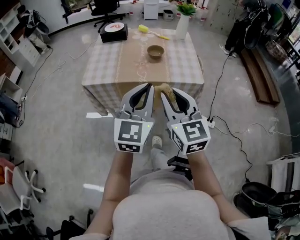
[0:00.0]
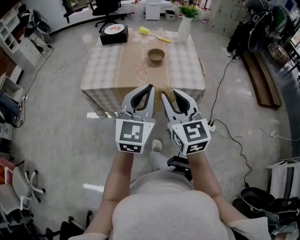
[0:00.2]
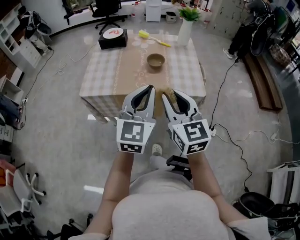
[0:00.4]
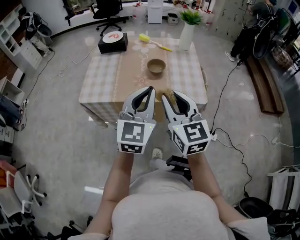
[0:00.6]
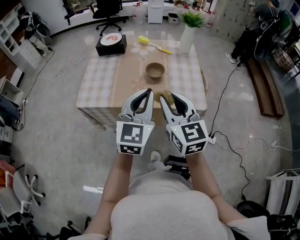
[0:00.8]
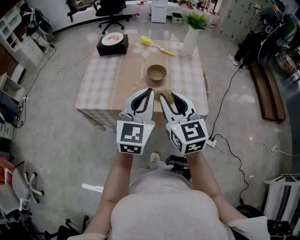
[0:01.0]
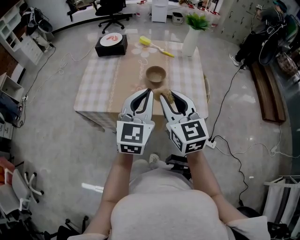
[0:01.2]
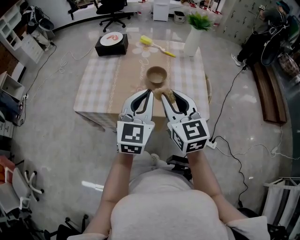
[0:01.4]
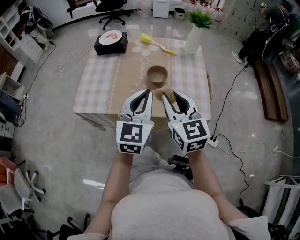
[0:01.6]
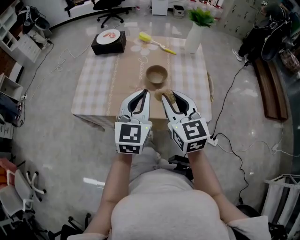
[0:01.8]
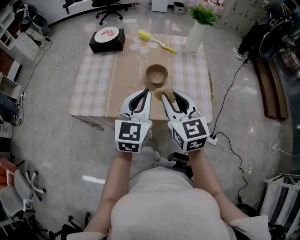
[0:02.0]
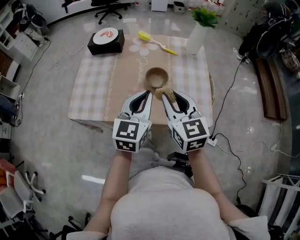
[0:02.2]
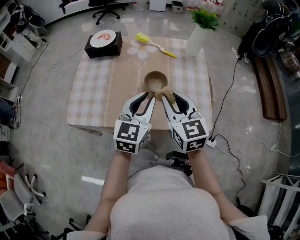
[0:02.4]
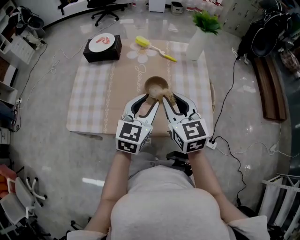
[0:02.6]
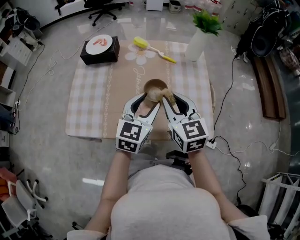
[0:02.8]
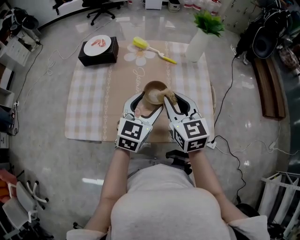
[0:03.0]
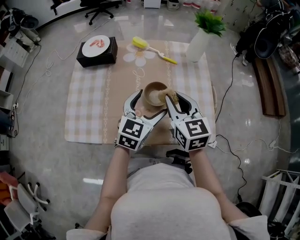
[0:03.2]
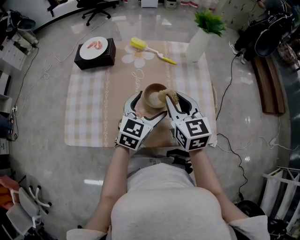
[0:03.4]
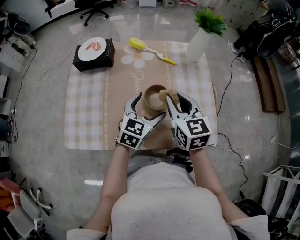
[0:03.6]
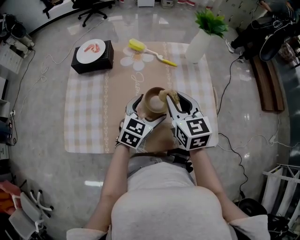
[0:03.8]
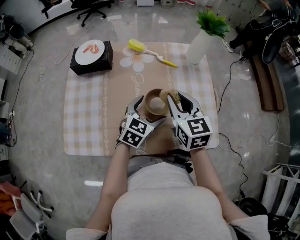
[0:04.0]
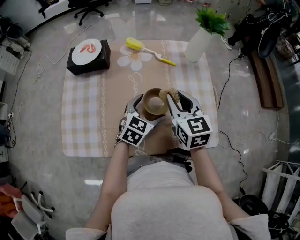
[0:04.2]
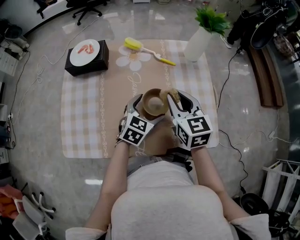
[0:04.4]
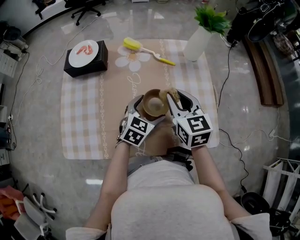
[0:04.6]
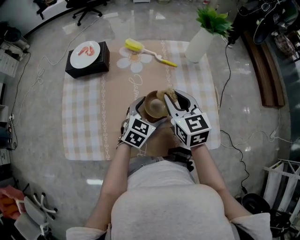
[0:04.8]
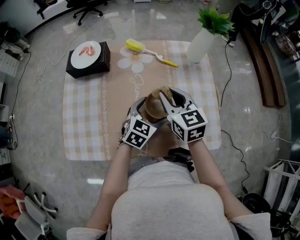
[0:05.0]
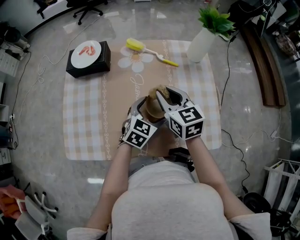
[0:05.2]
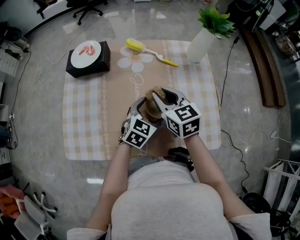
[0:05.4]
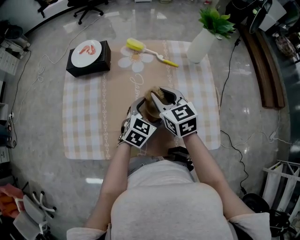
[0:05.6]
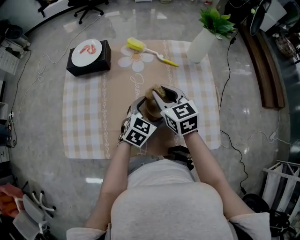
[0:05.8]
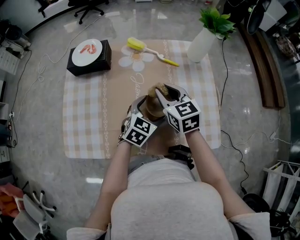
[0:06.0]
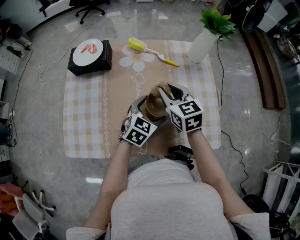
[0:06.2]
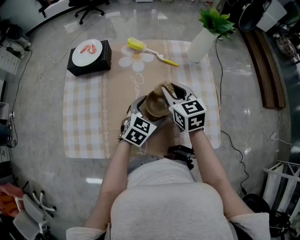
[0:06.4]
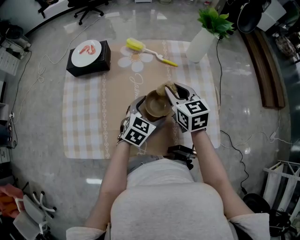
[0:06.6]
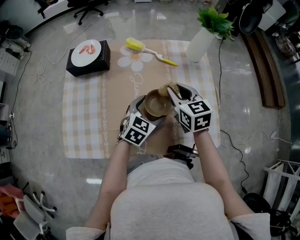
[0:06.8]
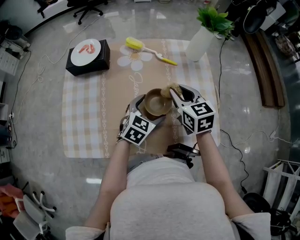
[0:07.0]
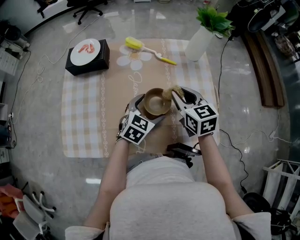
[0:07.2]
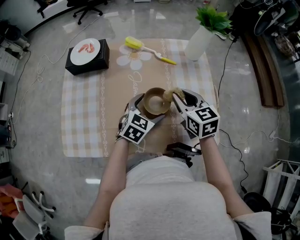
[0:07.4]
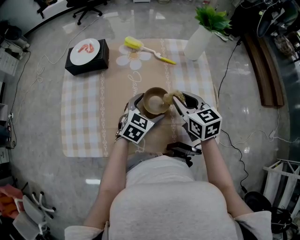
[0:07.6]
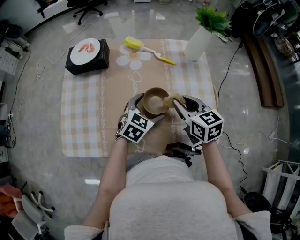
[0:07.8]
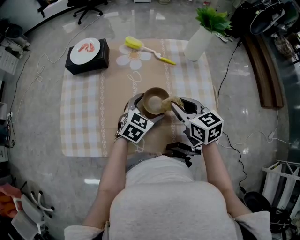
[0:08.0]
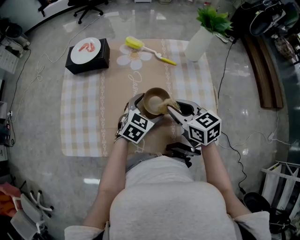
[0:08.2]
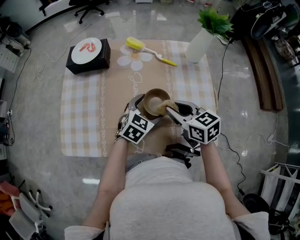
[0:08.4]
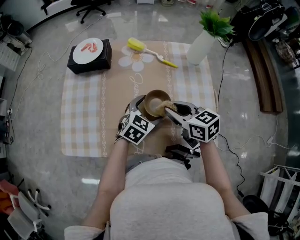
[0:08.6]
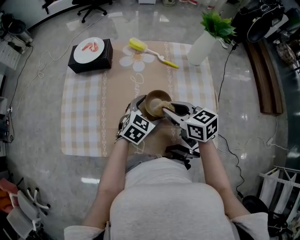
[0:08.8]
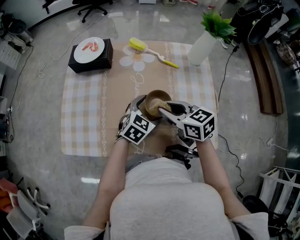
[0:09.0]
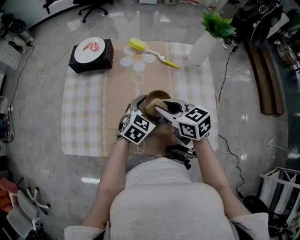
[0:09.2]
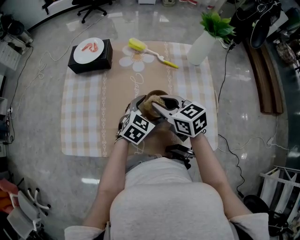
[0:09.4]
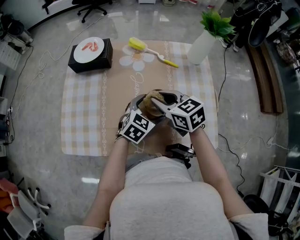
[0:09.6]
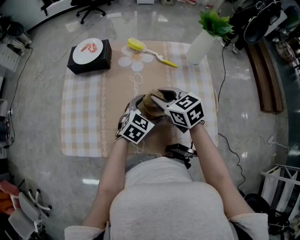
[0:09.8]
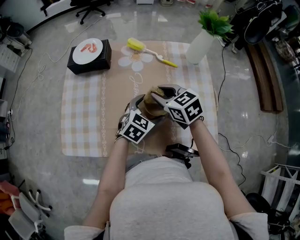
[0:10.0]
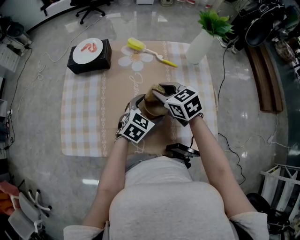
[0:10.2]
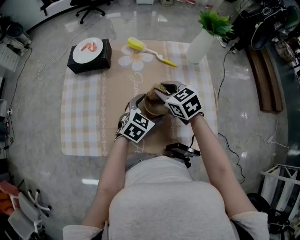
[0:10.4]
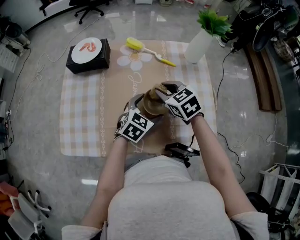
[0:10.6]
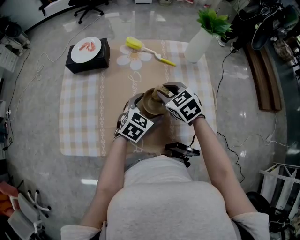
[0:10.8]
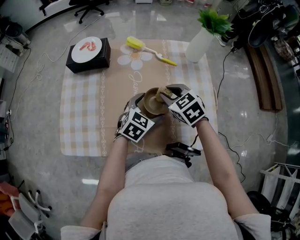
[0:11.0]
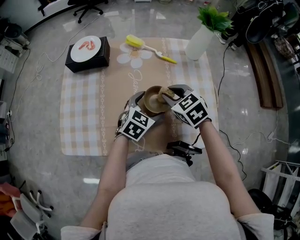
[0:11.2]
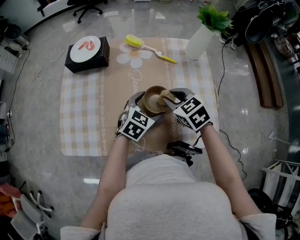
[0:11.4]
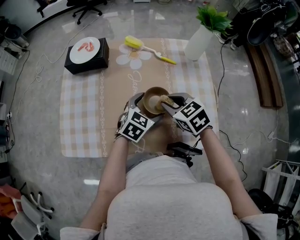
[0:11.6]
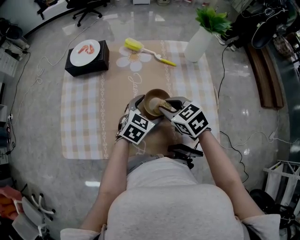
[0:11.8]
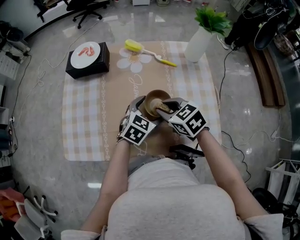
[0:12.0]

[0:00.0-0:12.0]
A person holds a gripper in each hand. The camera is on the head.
0:00.0 to 0:01.6: Both grippers travel together forward, about 25 cm.
0:01.6 to 0:03.0: Both grippers travel together forward and downward, about 15 cm. The left gripper opens up.
0:03.0 to 0:04.4: The left gripper heads downward and forward, covering approximately 15 cm, and opens its fingers, while the right gripper goes some 5 cm forward.
0:04.4 to 0:06.0: The right gripper is displaced to the left by approximately 5 cm.
0:06.0 to 0:07.6: The right gripper goes approximately 10 cm to the right.
0:07.6 to 0:09.0: The right gripper travels to the left by approximately 5 cm, and swivels roughly 20 degrees.
0:09.0 to 0:10.4: The right gripper is displaced forward by some 5 cm.
0:10.4 to 0:12.0: The right gripper is displaced backward by about 5 cm.

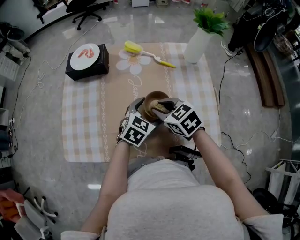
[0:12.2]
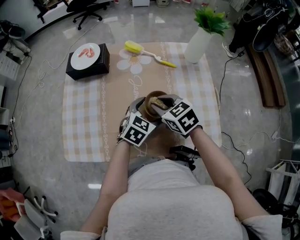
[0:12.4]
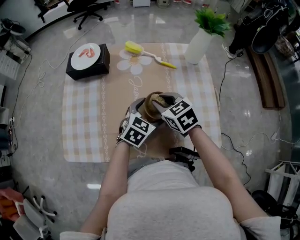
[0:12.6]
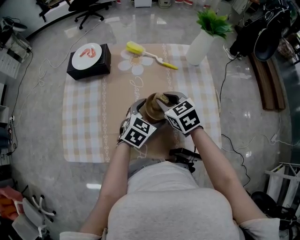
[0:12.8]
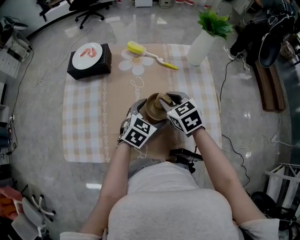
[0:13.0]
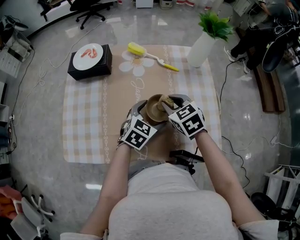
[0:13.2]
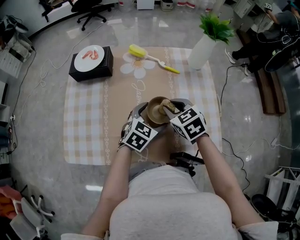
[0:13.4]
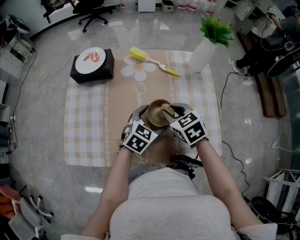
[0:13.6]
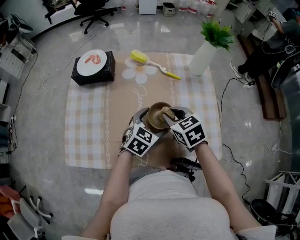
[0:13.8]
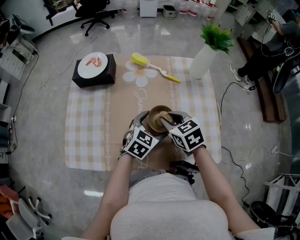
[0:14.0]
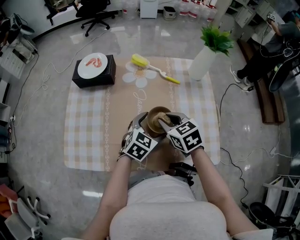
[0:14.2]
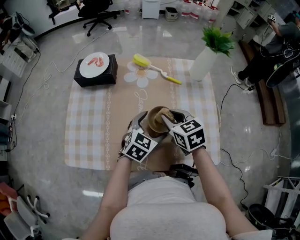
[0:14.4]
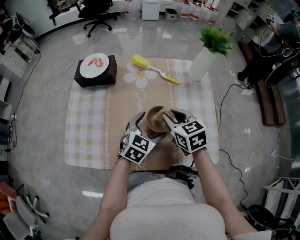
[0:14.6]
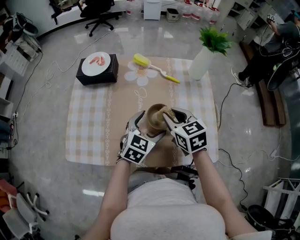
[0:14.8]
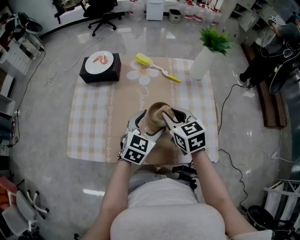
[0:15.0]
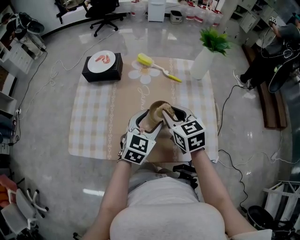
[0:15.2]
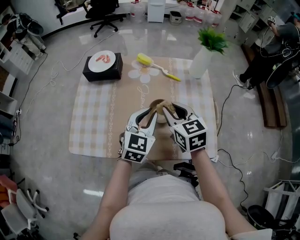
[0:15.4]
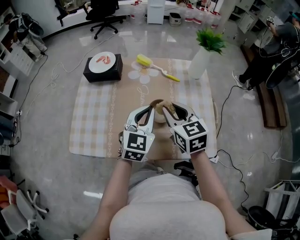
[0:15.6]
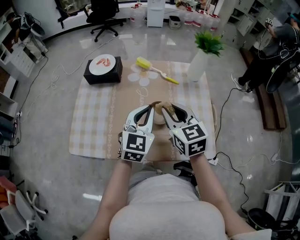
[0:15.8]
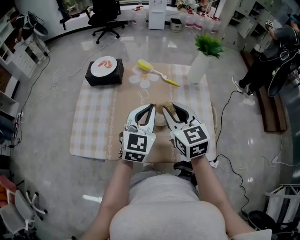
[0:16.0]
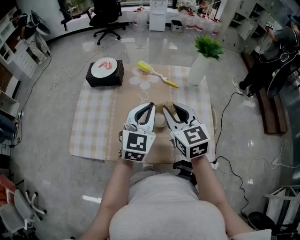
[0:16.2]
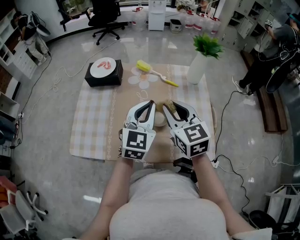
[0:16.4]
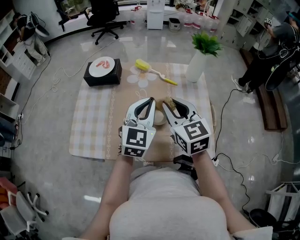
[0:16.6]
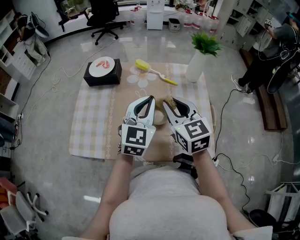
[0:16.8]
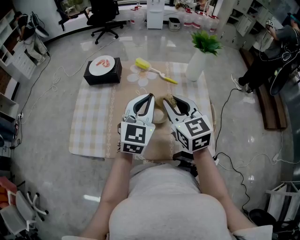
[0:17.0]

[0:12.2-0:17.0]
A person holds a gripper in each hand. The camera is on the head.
0:12.2 to 0:13.8: There are only small adjustments of the grippers.
0:13.8 to 0:15.4: The two grippers go about 10 cm upward. The left gripper changes its angle by roughly 30 degrees, and closes up.
0:15.4 to 0:17.0: The two grippers go about 10 cm upward.

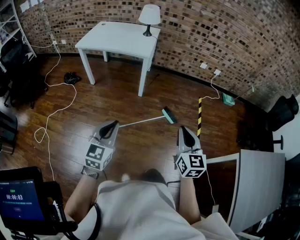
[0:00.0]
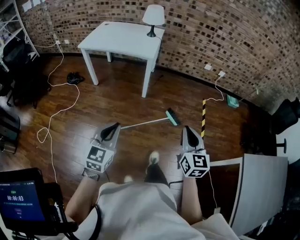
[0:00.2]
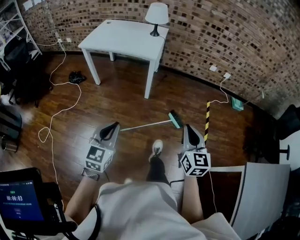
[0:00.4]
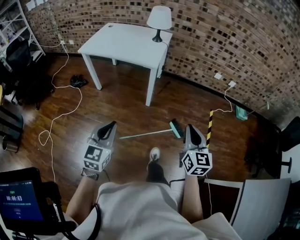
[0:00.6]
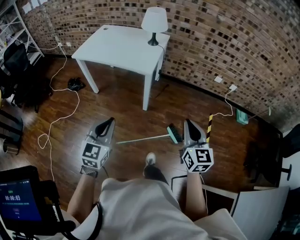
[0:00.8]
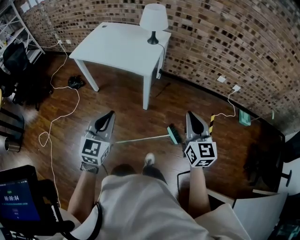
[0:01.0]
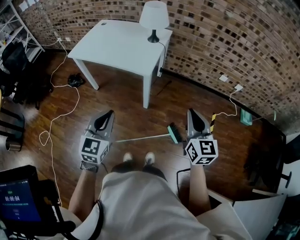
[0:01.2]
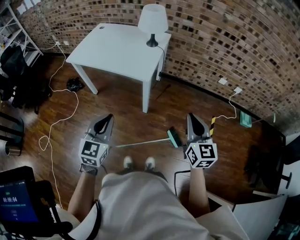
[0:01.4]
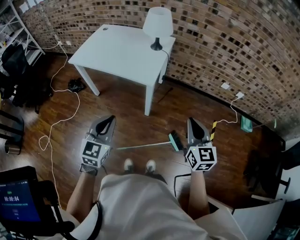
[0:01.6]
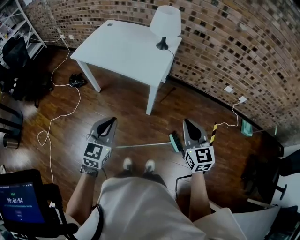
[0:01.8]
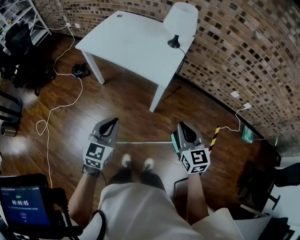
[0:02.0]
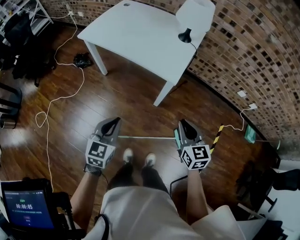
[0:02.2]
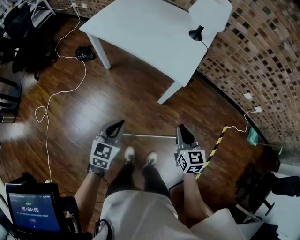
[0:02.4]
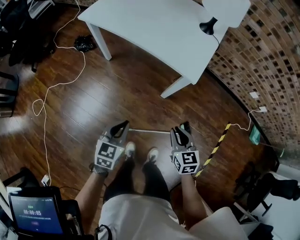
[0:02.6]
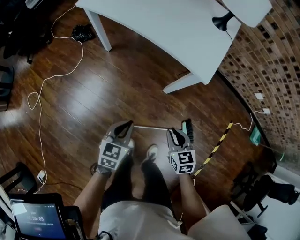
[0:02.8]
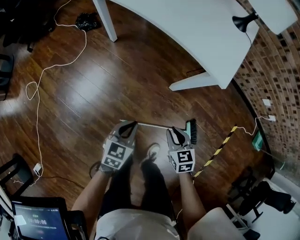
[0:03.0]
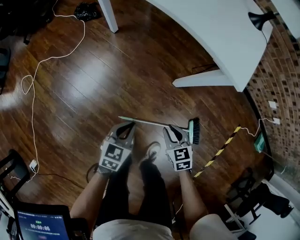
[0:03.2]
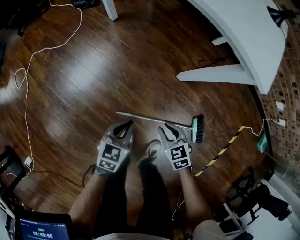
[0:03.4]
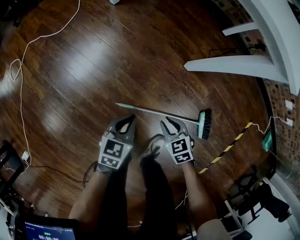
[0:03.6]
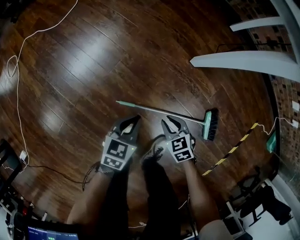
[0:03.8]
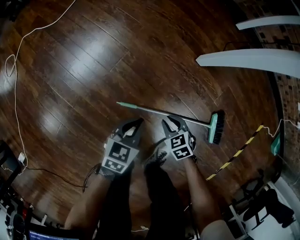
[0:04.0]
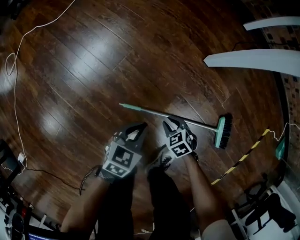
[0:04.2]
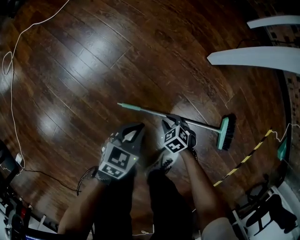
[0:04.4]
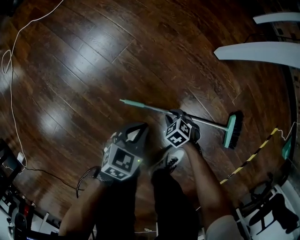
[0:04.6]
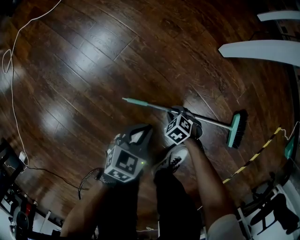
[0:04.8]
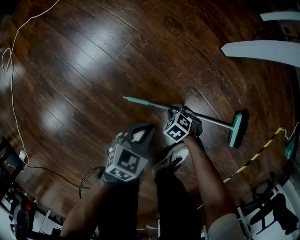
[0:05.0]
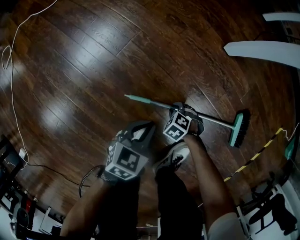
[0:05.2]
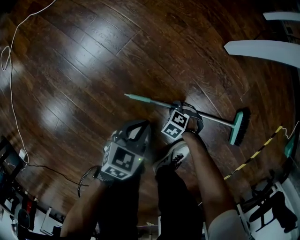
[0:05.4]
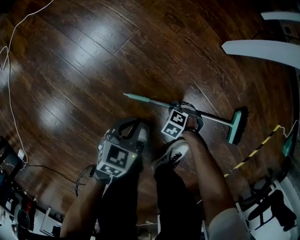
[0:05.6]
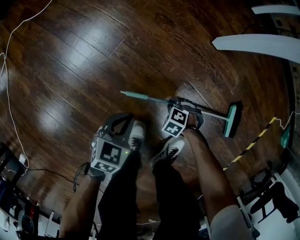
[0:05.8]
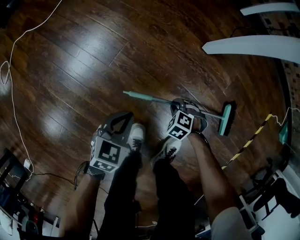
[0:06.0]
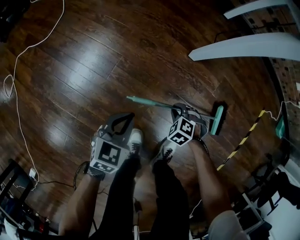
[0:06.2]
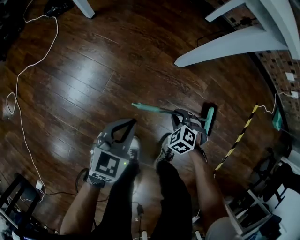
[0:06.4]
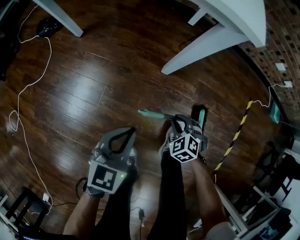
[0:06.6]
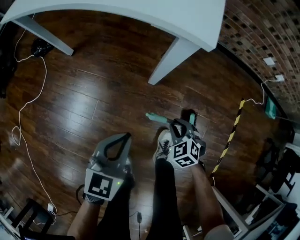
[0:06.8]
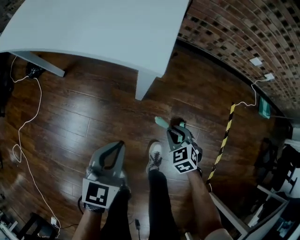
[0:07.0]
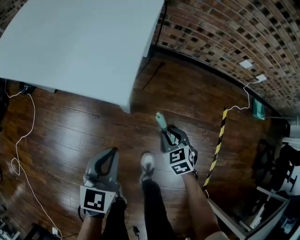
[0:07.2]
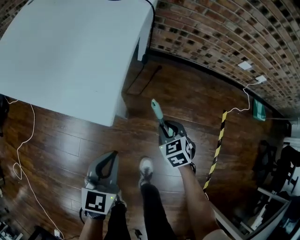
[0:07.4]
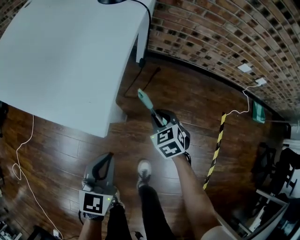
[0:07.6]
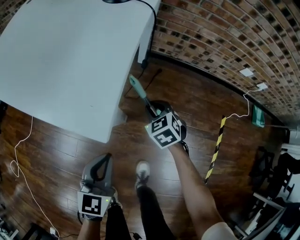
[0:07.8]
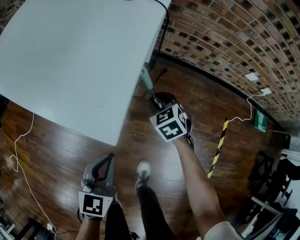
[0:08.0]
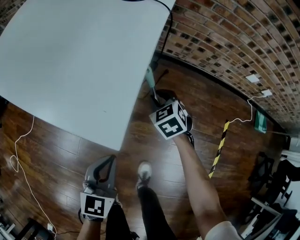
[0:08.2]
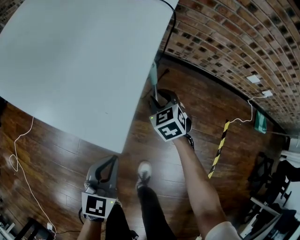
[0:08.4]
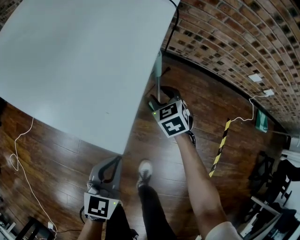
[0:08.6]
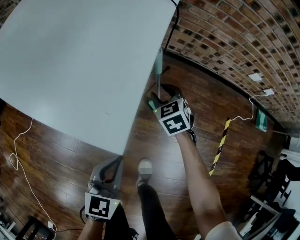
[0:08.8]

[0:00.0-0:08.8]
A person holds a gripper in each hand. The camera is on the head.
0:00.0 to 0:01.4: The two grippers go some 40 cm forward.
0:01.4 to 0:03.0: The left gripper moves downward, some 40 cm, and swivels about 30 degrees, while the right gripper is displaced downward and to the left by roughly 50 cm, and points its fingers some 40 degrees further downward.
0:03.0 to 0:04.4: Both grippers move downward, some 50 cm. The right gripper swivels about 40 degrees.
0:04.4 to 0:05.8: The right gripper changes its angle by roughly 30 degrees. The left gripper moves some 5 cm.
0:05.8 to 0:07.4: The grippers both shift upward by roughly 40 cm. The left gripper swivels some 30 degrees; the right gripper twists about 60 degrees clockwise, seen from behind.
0:07.4 to 0:08.8: The right gripper travels forward by approximately 15 cm, and opens.
